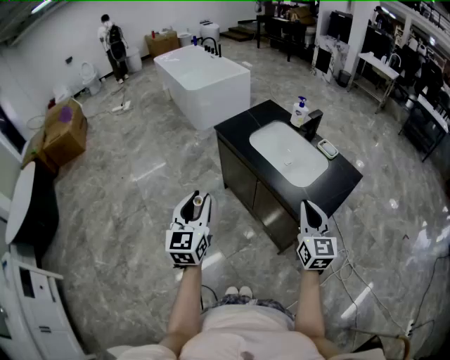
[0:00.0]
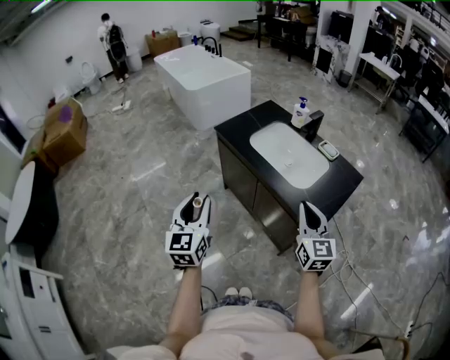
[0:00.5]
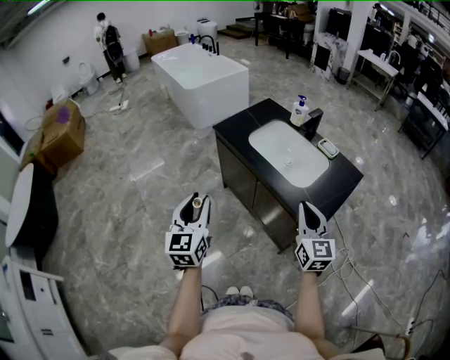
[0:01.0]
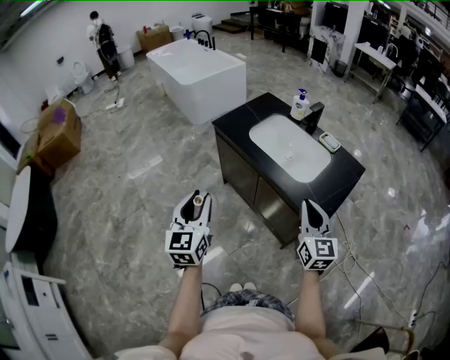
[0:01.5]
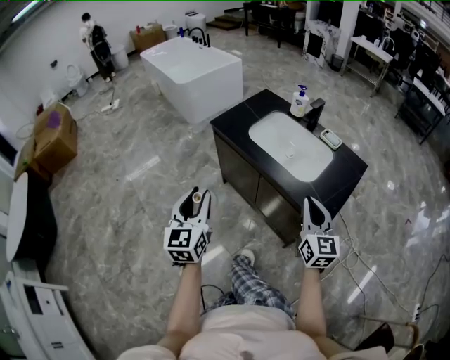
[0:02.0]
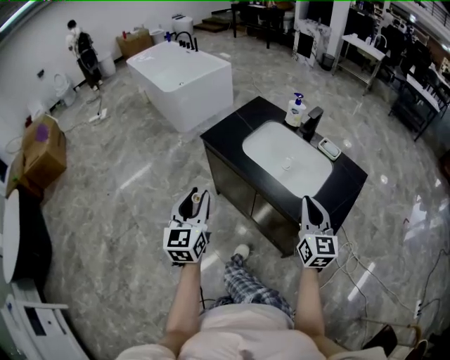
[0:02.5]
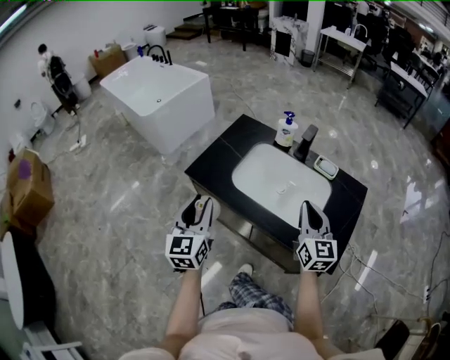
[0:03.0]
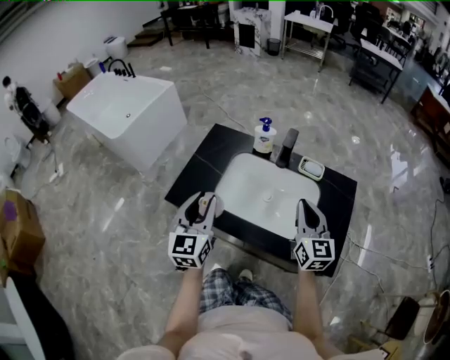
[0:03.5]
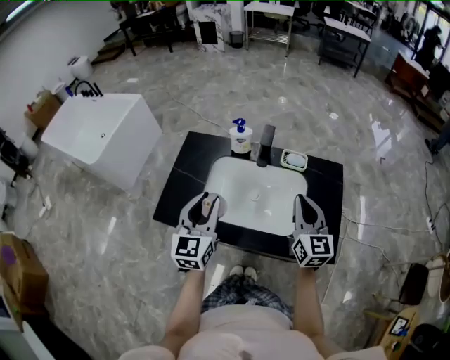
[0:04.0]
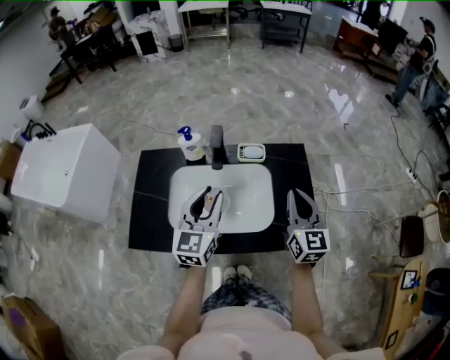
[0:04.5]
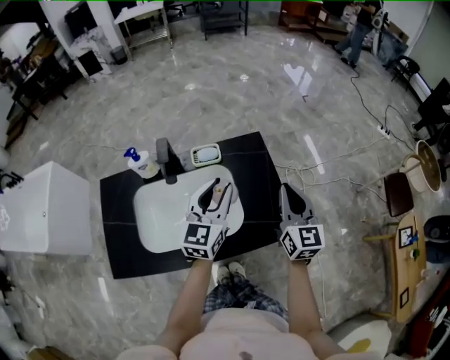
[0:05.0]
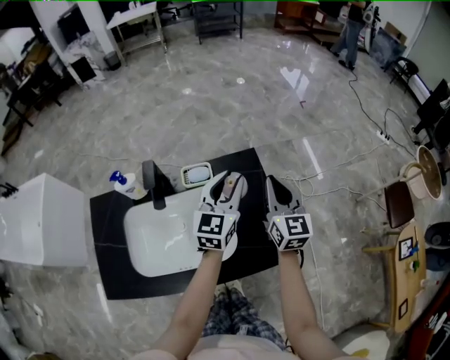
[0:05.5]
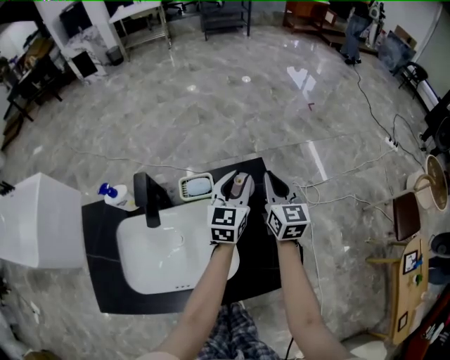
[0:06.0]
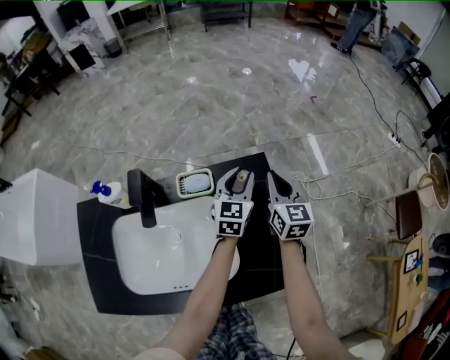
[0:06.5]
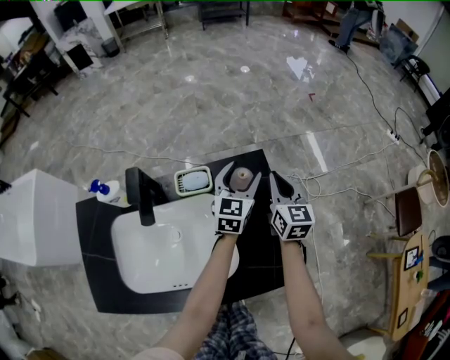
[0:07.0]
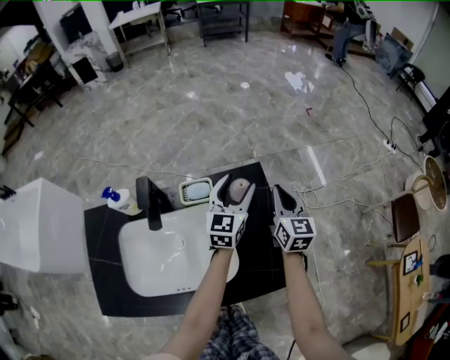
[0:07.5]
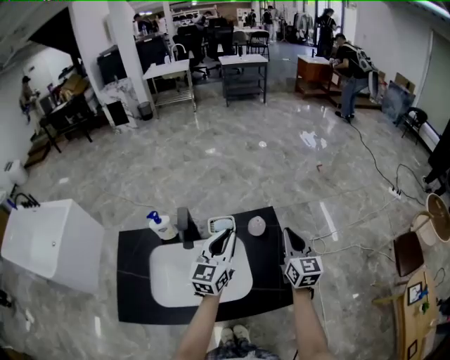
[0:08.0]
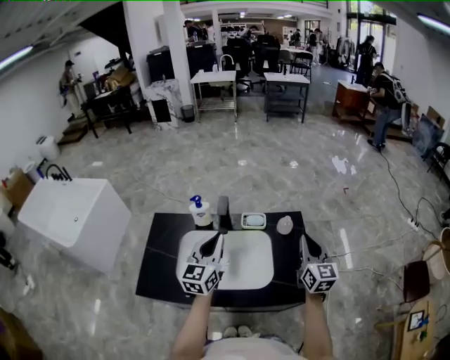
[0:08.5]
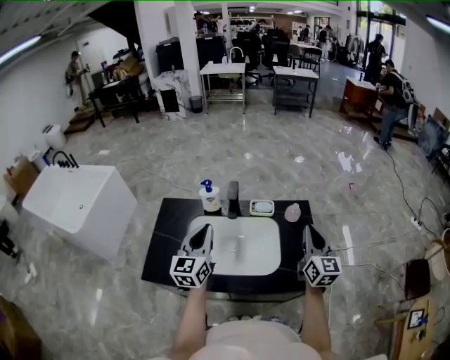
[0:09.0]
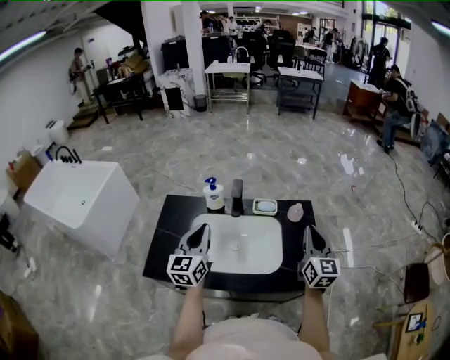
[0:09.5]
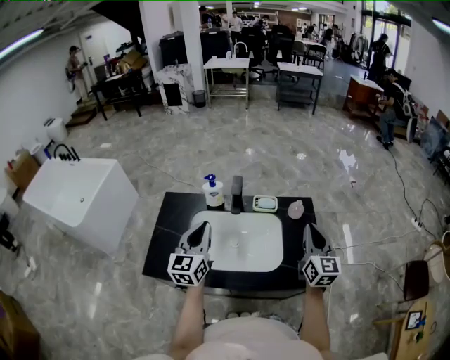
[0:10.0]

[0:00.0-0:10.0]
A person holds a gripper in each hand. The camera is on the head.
0:00.0 to 0:02.0: The left gripper goes approximately 5 cm forward, while the right gripper moves roughly 5 cm.
0:02.0 to 0:04.0: The right gripper changes place by some 35 cm, and rotates roughly 30 degrees. Meanwhile the left gripper moves roughly 50 cm, and turns by about 40 degrees.
0:04.0 to 0:06.0: The left gripper changes place by roughly 60 cm, and swivels about 40 degrees. Meanwhile the right gripper shifts by roughly 40 cm, and changes its angle by about 20 degrees.
0:06.0 to 0:08.0: The left gripper shifts approximately 25 cm backward, upward and to the left, and opens and closes again. Meanwhile the right gripper travels backward and upward by about 15 cm.
0:08.0 to 0:10.0: The right gripper travels backward, to the left and upward by about 15 cm, while the left gripper heads to the left and backward, covering about 30 cm, and swivels approximately 20 degrees.

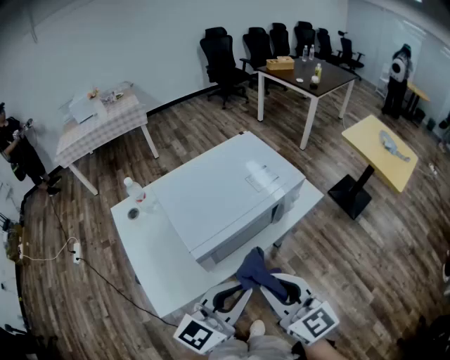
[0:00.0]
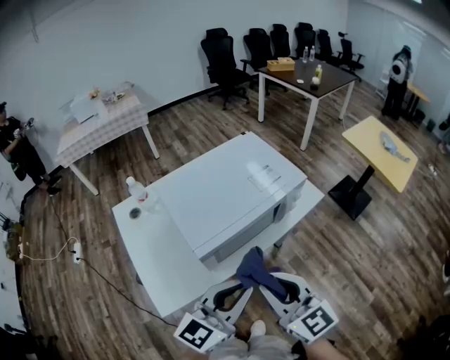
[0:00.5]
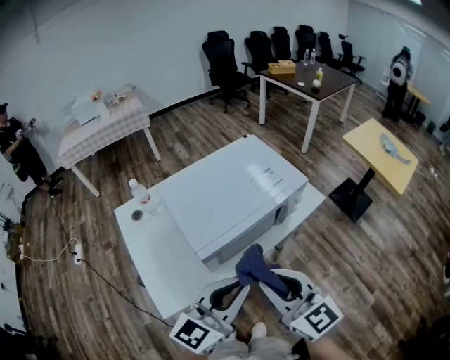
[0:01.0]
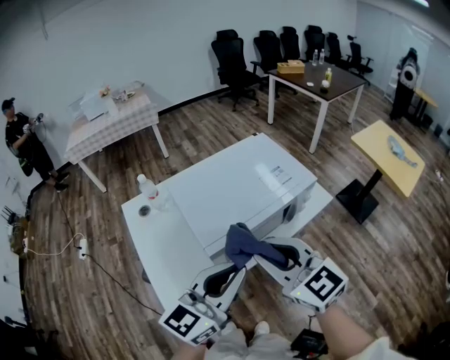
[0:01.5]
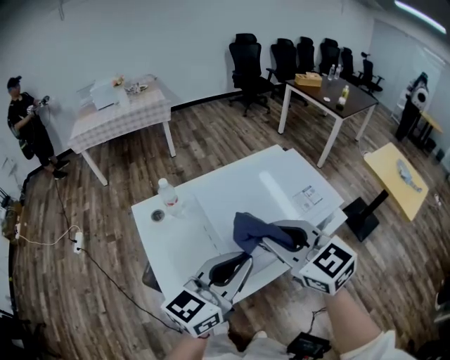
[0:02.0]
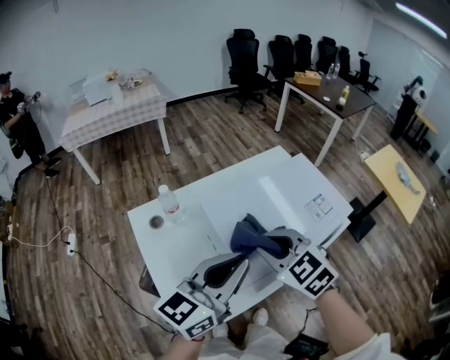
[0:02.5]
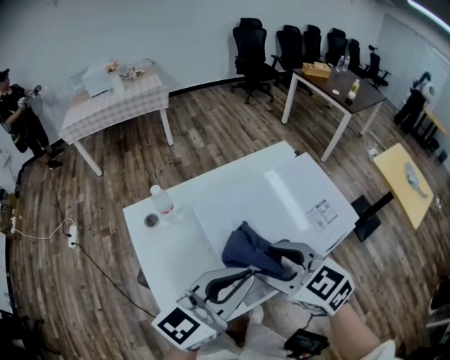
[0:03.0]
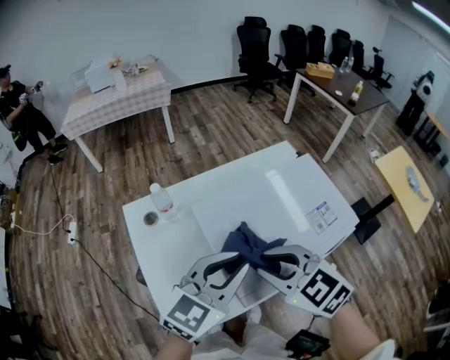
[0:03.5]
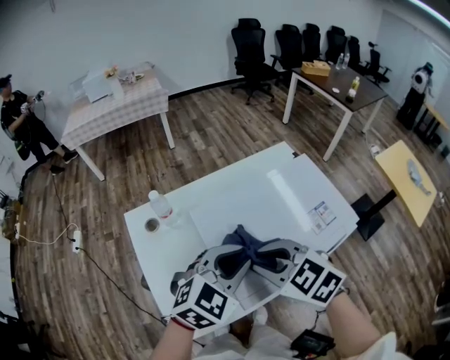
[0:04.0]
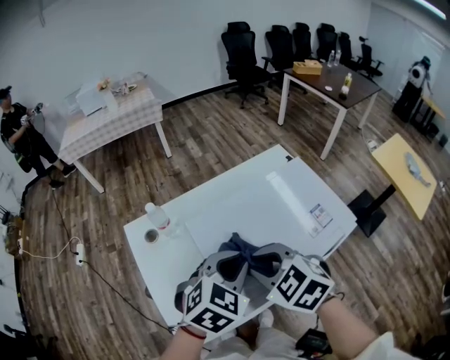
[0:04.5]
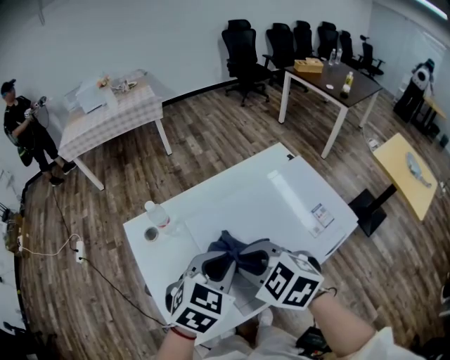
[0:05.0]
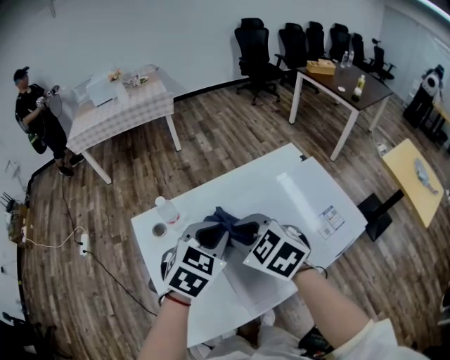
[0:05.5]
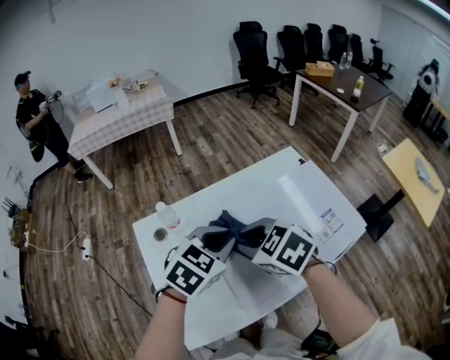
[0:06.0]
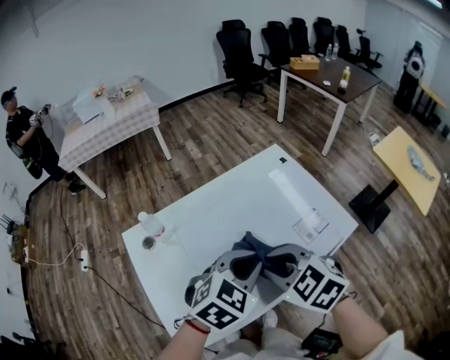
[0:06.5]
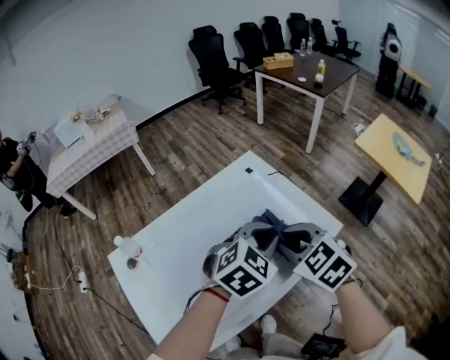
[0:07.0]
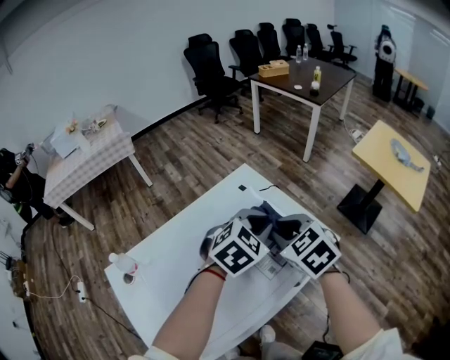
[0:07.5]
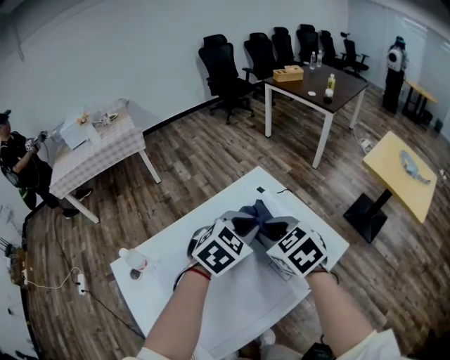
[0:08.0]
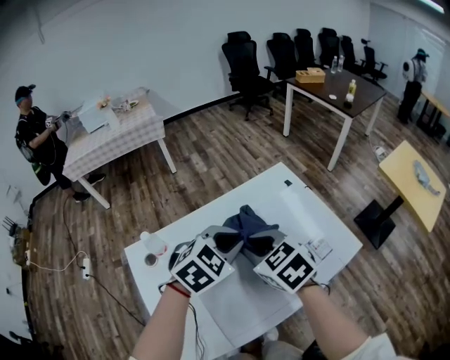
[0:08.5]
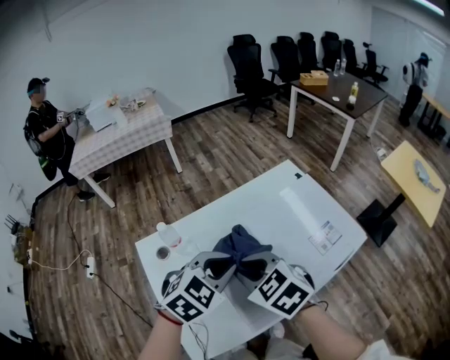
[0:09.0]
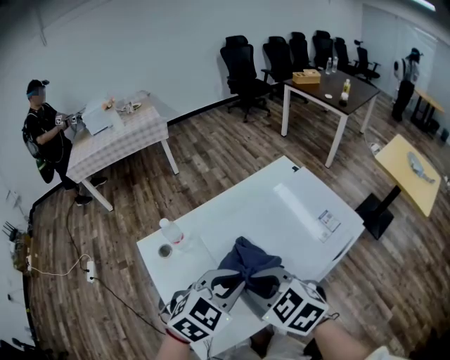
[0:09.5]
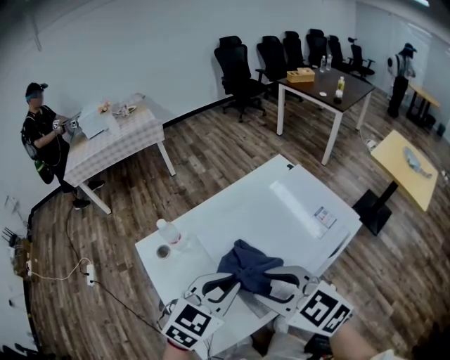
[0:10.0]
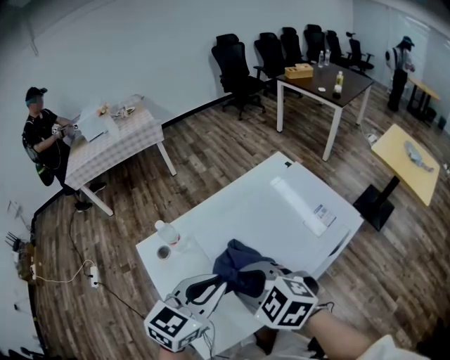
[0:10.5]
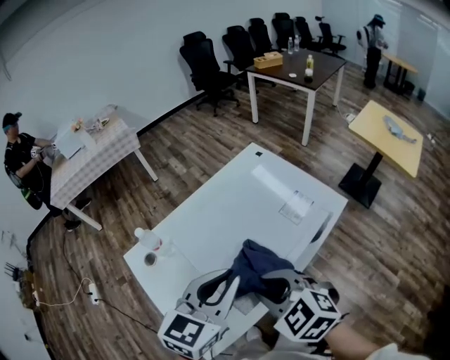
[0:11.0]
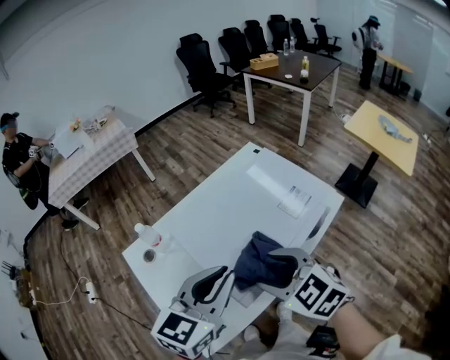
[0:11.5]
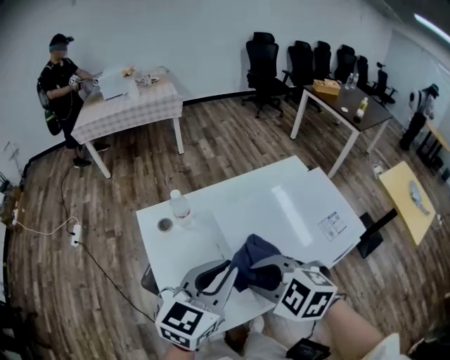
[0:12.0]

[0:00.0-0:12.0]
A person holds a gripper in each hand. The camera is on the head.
0:00.0 to 0:02.0: The right gripper heads forward, to the left and upward, covering about 20 cm, and swivels some 20 degrees. The left gripper goes approximately 15 cm to the left, forward and upward.
0:02.0 to 0:04.0: The right gripper moves downward, roughly 10 cm, changes its angle by some 30 degrees, and opens and closes again. The left gripper heads forward and downward, covering roughly 15 cm, and tips its fingers downward by approximately 30 degrees.
0:04.0 to 0:06.0: The two grippers go roughly 10 cm forward.
0:06.0 to 0:08.0: The right gripper shifts by approximately 25 cm, and changes its angle by about 30 degrees. Meanwhile the left gripper moves about 25 cm, and rotates approximately 20 degrees.
0:08.0 to 0:10.0: Both grippers travel together backward and to the left, about 30 cm. The right gripper rotates some 20 degrees.
0:10.0 to 0:12.0: The right gripper moves left and right over some 10 cm, changing direction 2 times, and changes its angle by approximately 30 degrees, while the left gripper ends up about 5 cm from where it was, and swivels approximately 30 degrees.

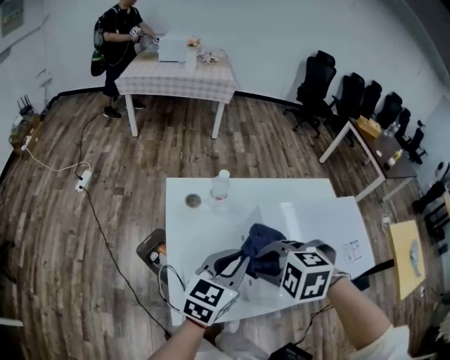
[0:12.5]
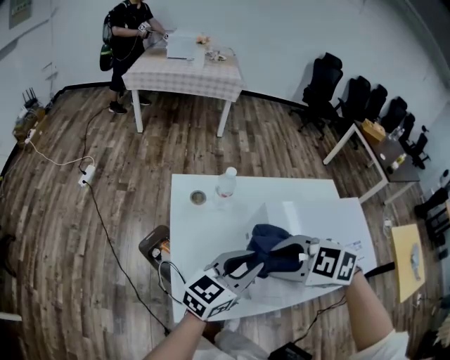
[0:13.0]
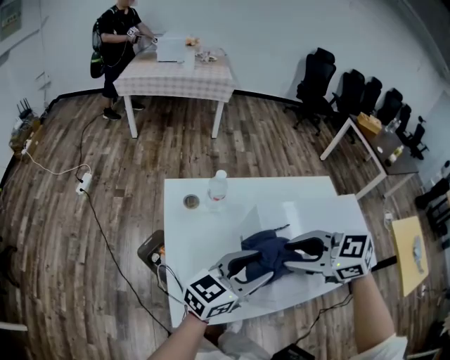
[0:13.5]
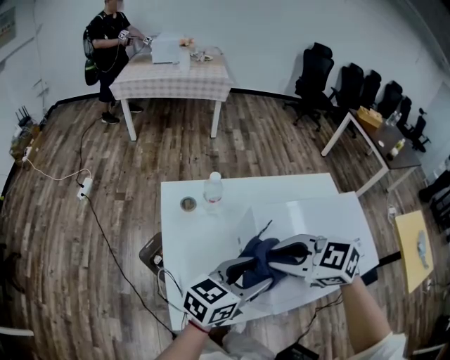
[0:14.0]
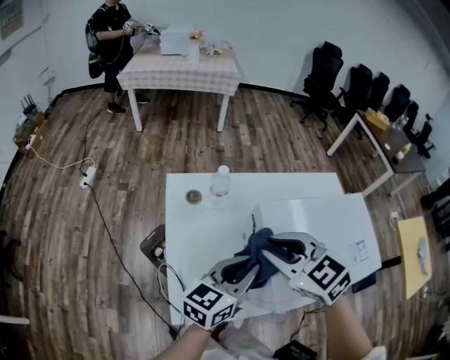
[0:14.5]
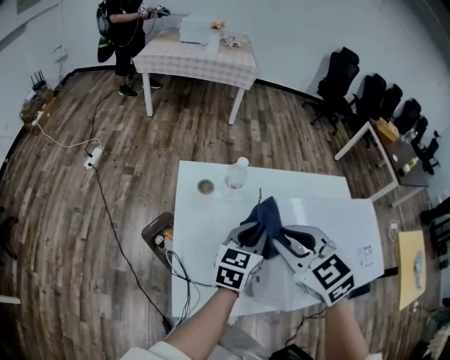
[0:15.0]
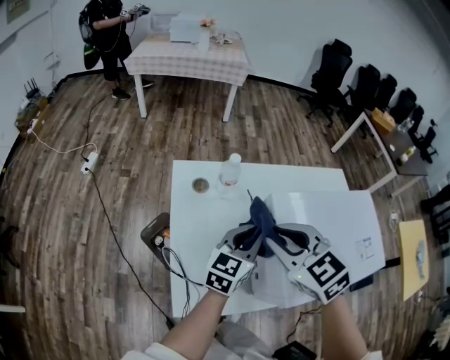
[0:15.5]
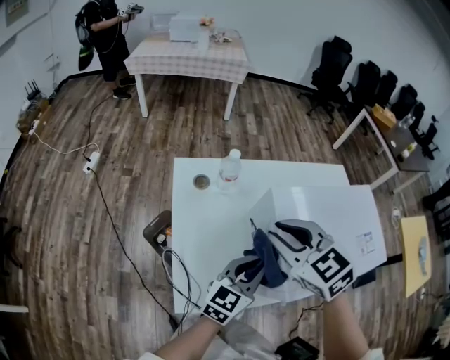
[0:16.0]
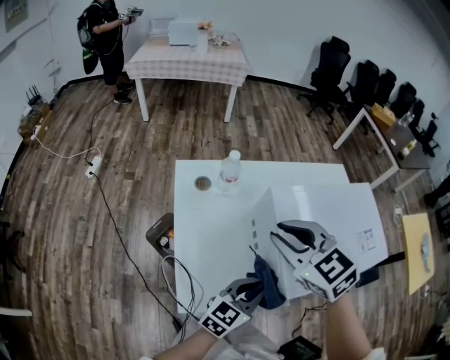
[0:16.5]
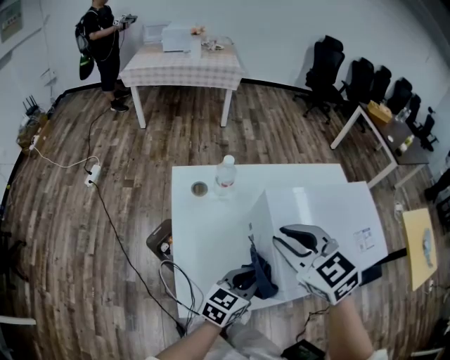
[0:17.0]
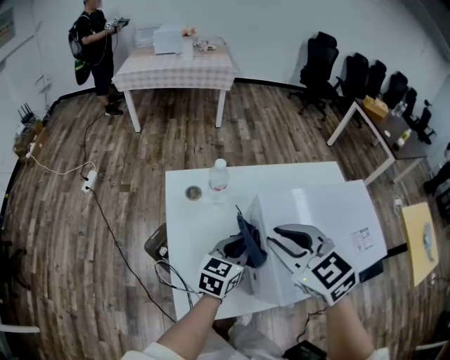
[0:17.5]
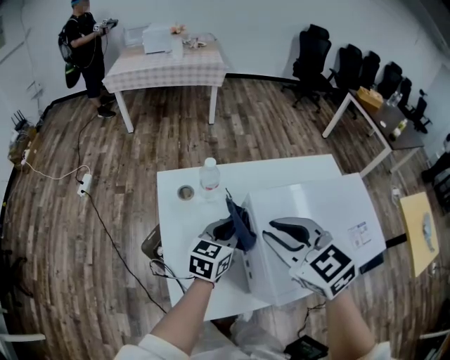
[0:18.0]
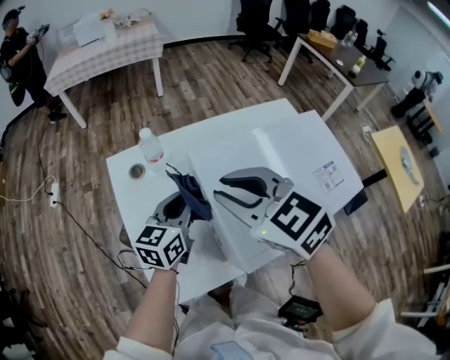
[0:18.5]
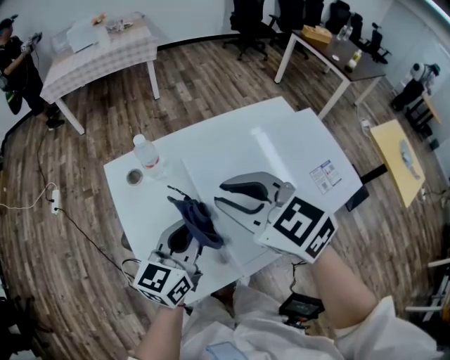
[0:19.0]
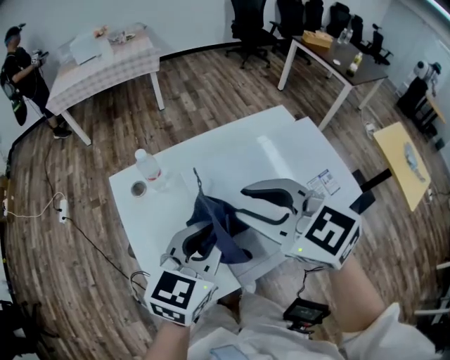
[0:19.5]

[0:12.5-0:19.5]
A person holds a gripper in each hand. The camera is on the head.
0:12.5 to 0:14.5: The left gripper opens and closes again, while the right gripper ends up approximately 5 cm from where it was, and angles its fingers upward, by roughly 30 degrees.
0:14.5 to 0:16.0: The left gripper goes some 5 cm downward, and goes forward and returns, some 10 cm each way.
0:16.0 to 0:17.5: The left gripper goes roughly 10 cm forward.
0:17.5 to 0:19.5: The right gripper moves to the right and upward, some 10 cm; the left gripper heads upward, covering roughly 15 cm.
